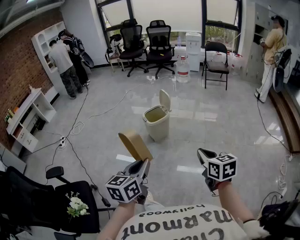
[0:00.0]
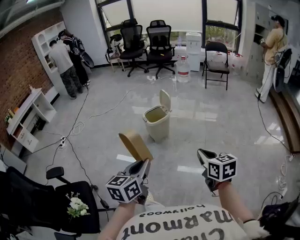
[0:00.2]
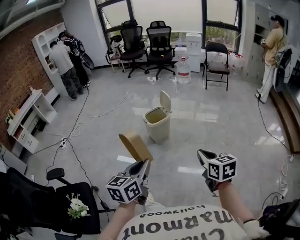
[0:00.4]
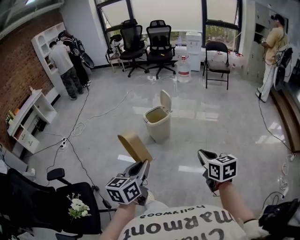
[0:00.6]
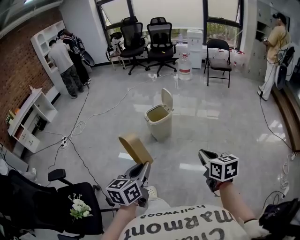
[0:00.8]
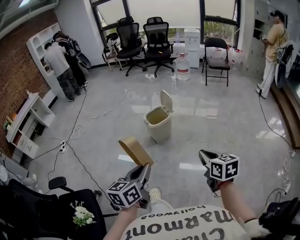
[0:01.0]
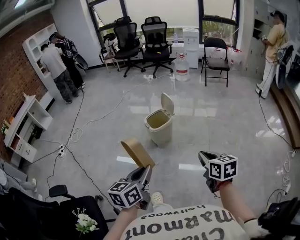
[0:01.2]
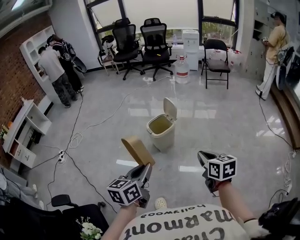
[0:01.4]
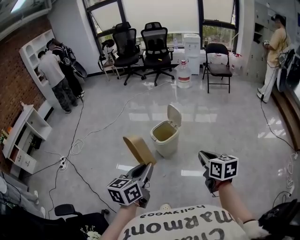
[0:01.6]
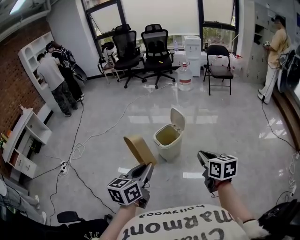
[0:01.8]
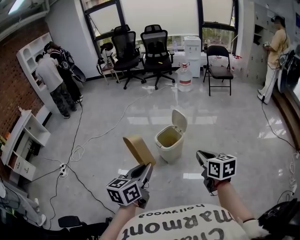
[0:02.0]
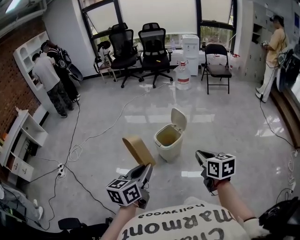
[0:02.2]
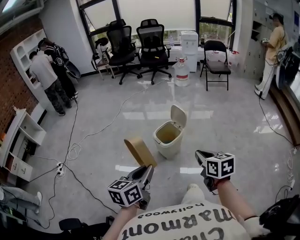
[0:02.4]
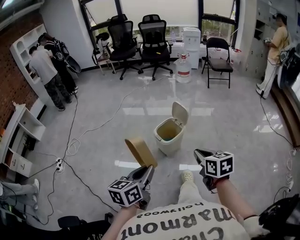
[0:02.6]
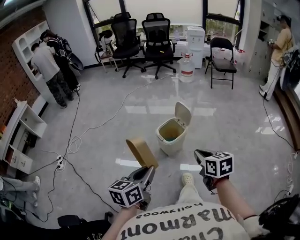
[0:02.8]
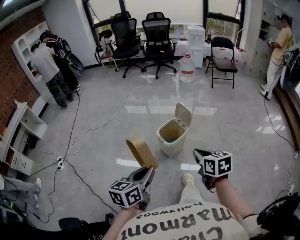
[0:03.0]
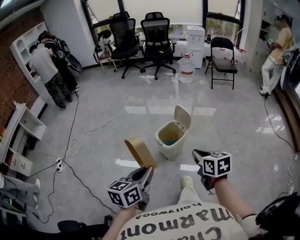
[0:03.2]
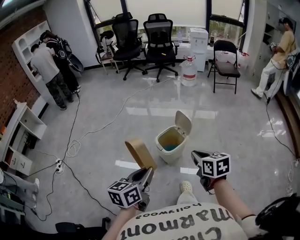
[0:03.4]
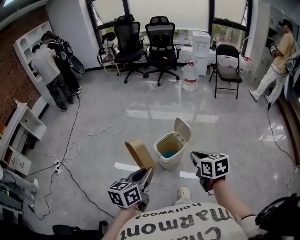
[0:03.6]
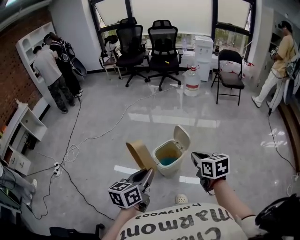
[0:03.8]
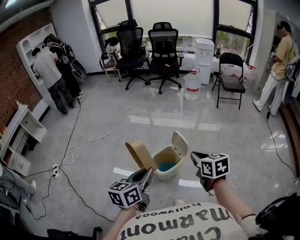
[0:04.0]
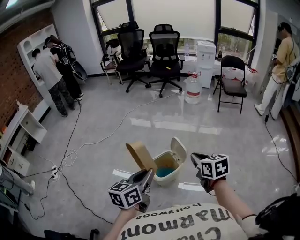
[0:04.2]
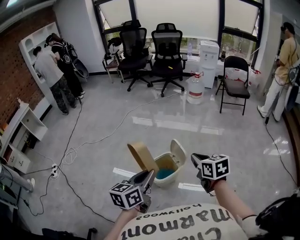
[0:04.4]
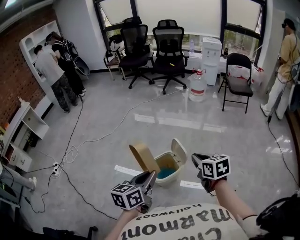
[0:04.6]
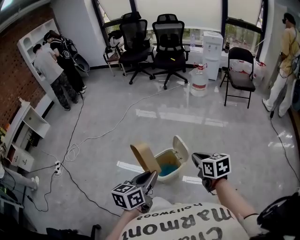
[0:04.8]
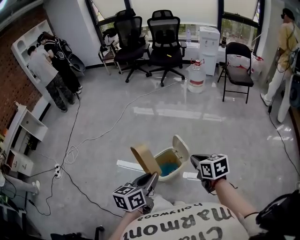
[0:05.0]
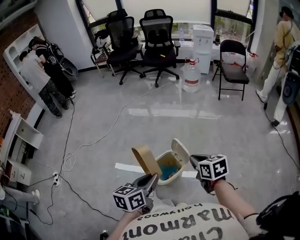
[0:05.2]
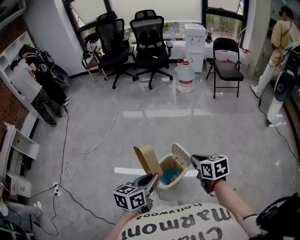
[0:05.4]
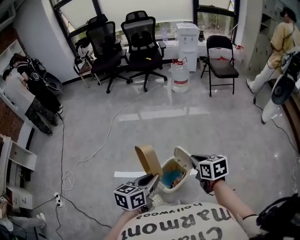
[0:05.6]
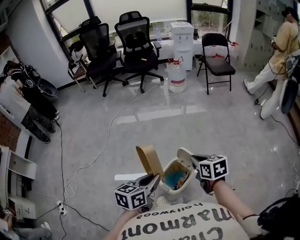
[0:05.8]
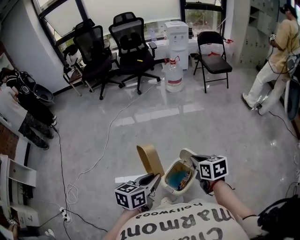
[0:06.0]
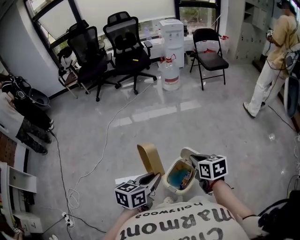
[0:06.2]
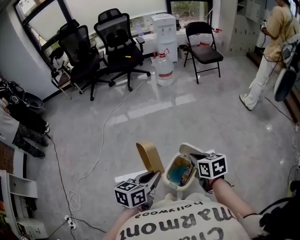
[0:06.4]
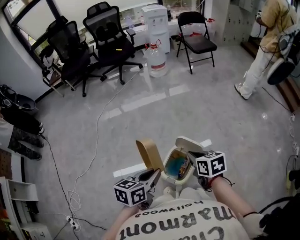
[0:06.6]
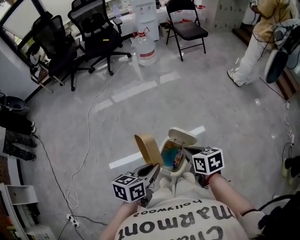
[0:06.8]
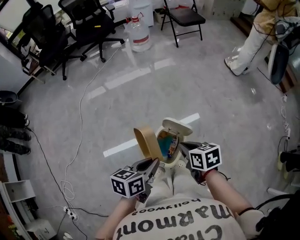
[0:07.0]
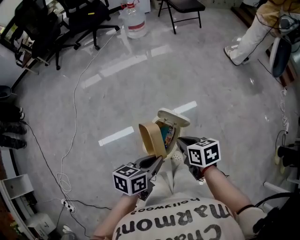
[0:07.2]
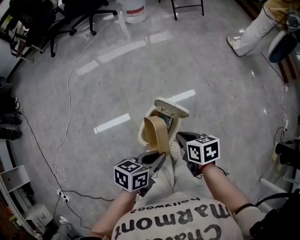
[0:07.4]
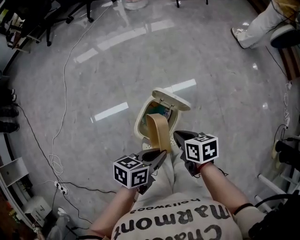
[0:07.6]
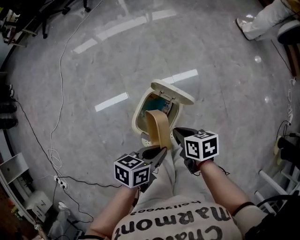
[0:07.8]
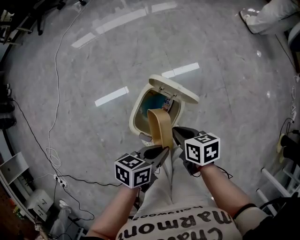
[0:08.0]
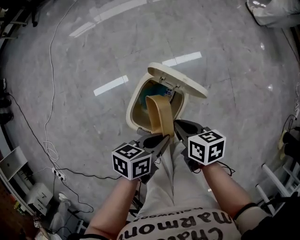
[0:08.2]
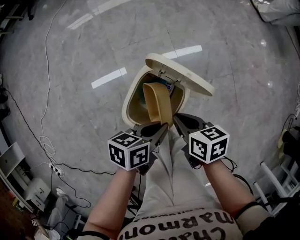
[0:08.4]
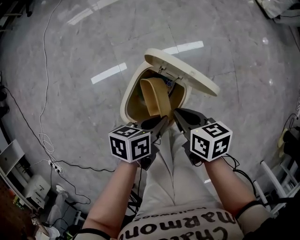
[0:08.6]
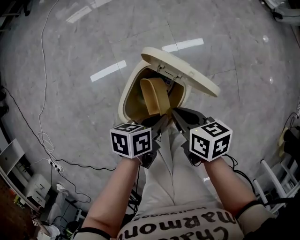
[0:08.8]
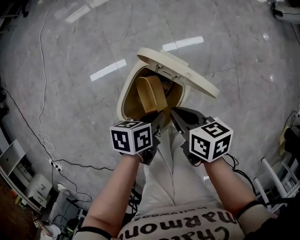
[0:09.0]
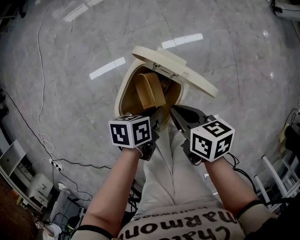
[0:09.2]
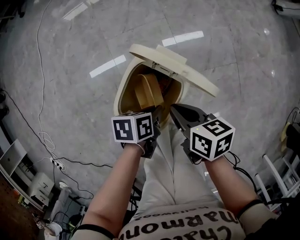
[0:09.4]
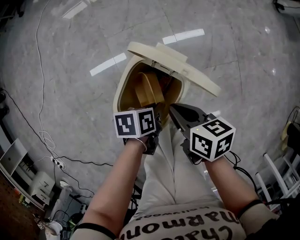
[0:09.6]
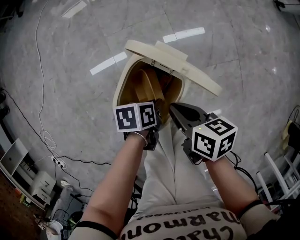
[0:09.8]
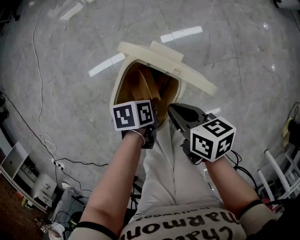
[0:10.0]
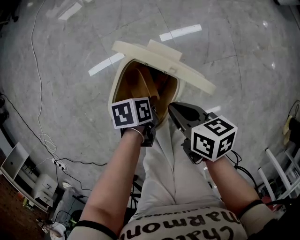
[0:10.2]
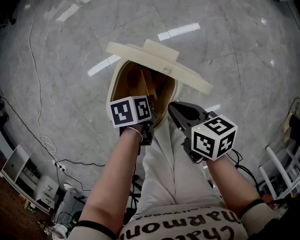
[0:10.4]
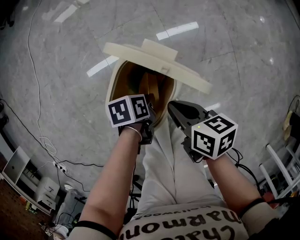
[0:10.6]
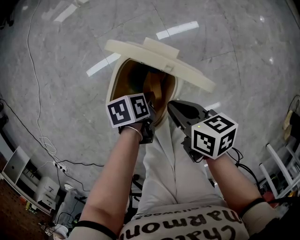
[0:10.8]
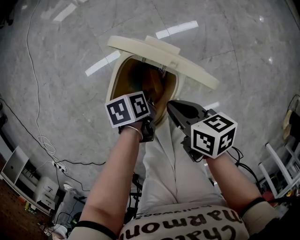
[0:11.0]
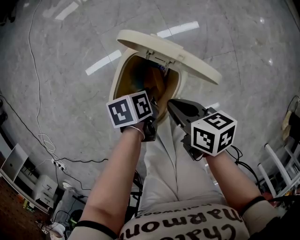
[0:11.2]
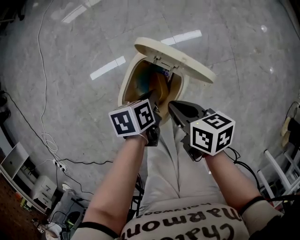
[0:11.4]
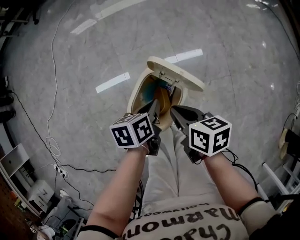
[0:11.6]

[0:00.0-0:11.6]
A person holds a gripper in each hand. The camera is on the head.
0.0 to 1.4 s: The two grippers go some 15 cm forward and to the left.
1.4 to 2.8 s: Both grippers travel together to the left and forward, some 15 cm.
2.8 to 4.4 s: Both grippers move forward, about 25 cm.
4.4 to 5.8 s: The grippers both shift forward and to the left by roughly 15 cm. The left gripper swivels about 30 degrees.
5.8 to 7.2 s: The right gripper shifts about 10 cm downward, and changes its angle by some 20 degrees. The left gripper heads downward and to the right, covering roughly 15 cm, and turns by approximately 30 degrees.
7.2 to 8.8 s: The two grippers go approximately 25 cm downward. The left gripper changes its angle by roughly 20 degrees.
8.8 to 10.2 s: The left gripper is displaced downward by about 10 cm, and swivels some 20 degrees.
10.2 to 11.6 s: The left gripper moves upward, some 15 cm, turns by about 20 degrees, and opens and closes again. Meanwhile the right gripper travels upward by about 10 cm.

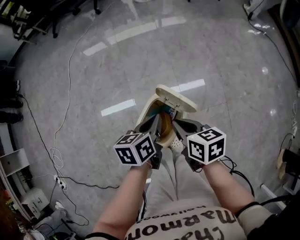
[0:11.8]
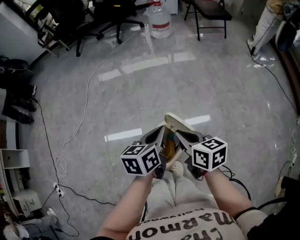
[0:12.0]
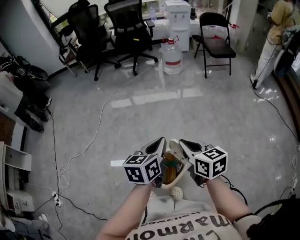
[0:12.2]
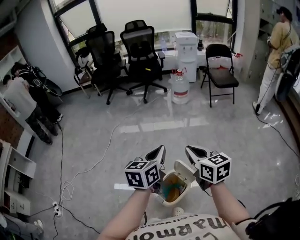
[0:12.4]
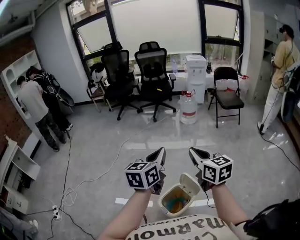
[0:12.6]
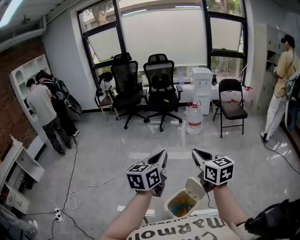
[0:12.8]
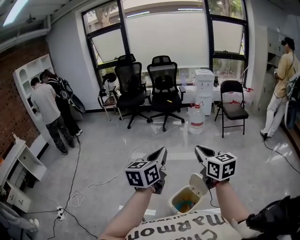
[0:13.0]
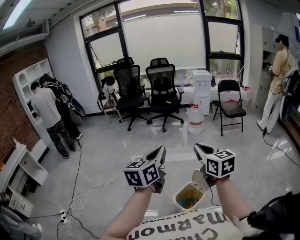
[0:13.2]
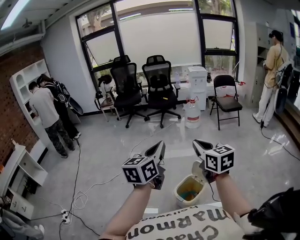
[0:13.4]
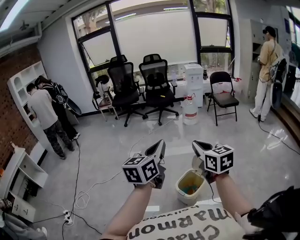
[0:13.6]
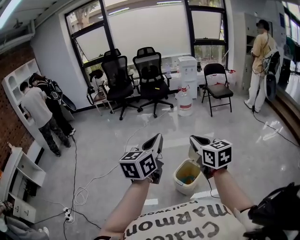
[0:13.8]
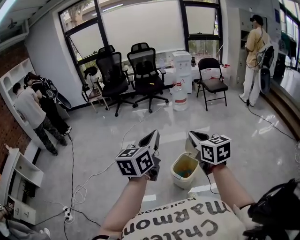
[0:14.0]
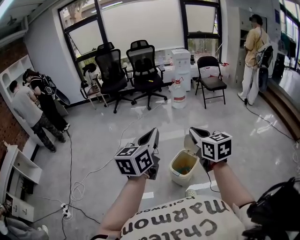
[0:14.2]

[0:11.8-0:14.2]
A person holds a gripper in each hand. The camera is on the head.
11.8 to 13.0 s: The grippers both shift upward by roughly 40 cm. The left gripper points its fingers approximately 30 degrees further upward. The right gripper tips its fingers upward by about 30 degrees.
13.0 to 14.2 s: The two grippers go roughly 20 cm backward.

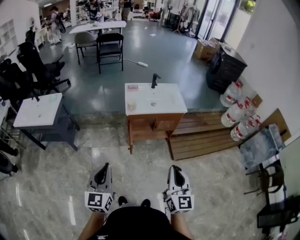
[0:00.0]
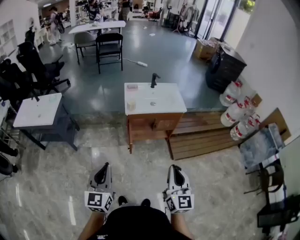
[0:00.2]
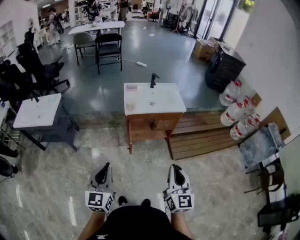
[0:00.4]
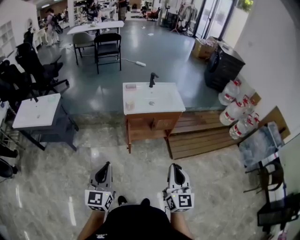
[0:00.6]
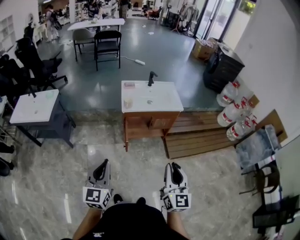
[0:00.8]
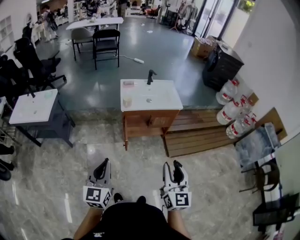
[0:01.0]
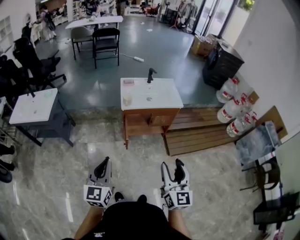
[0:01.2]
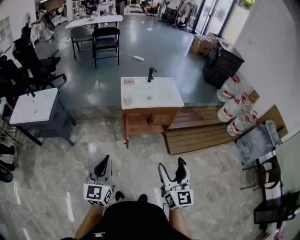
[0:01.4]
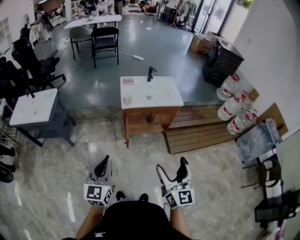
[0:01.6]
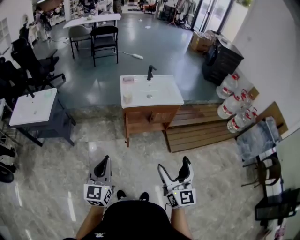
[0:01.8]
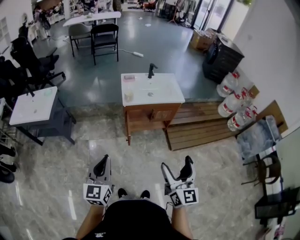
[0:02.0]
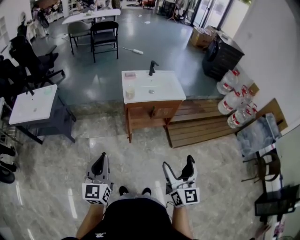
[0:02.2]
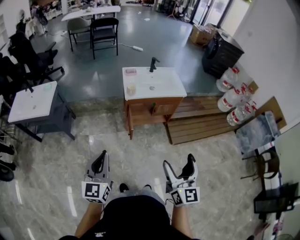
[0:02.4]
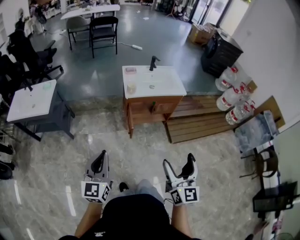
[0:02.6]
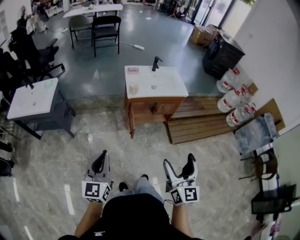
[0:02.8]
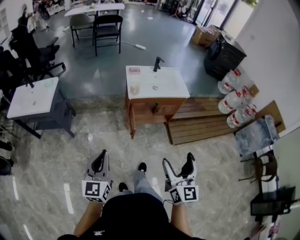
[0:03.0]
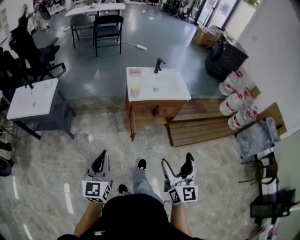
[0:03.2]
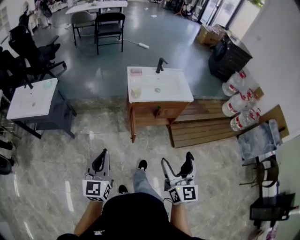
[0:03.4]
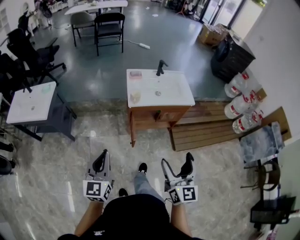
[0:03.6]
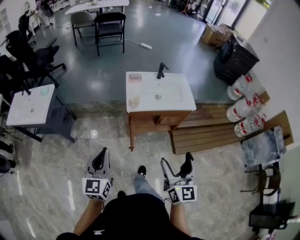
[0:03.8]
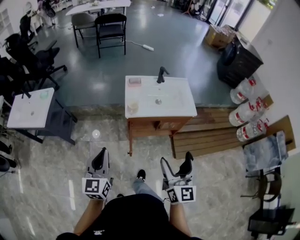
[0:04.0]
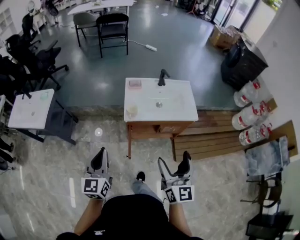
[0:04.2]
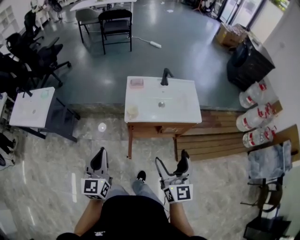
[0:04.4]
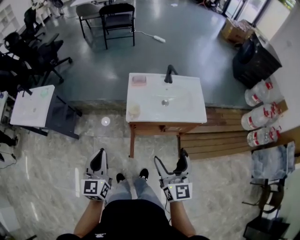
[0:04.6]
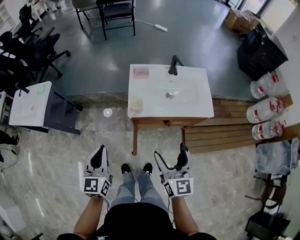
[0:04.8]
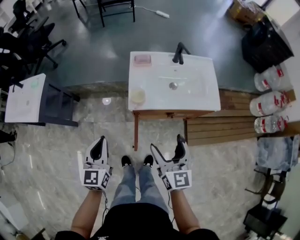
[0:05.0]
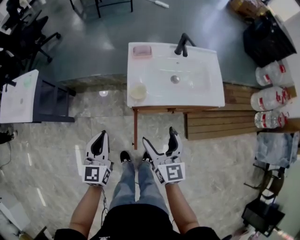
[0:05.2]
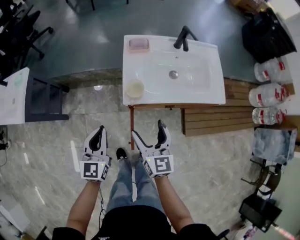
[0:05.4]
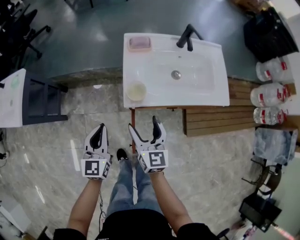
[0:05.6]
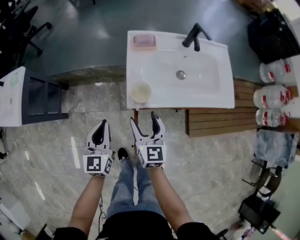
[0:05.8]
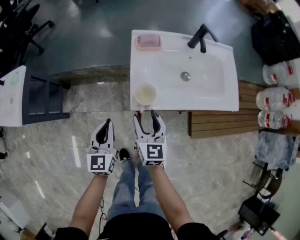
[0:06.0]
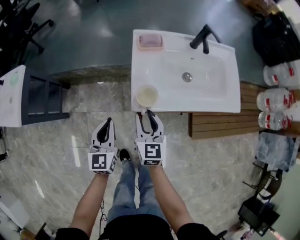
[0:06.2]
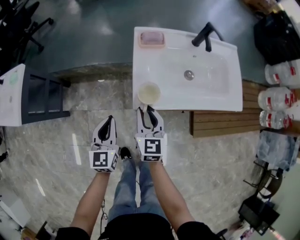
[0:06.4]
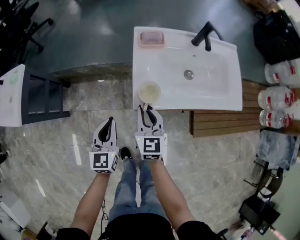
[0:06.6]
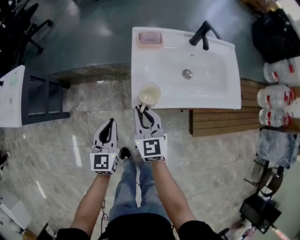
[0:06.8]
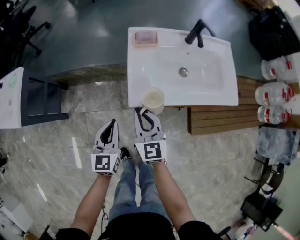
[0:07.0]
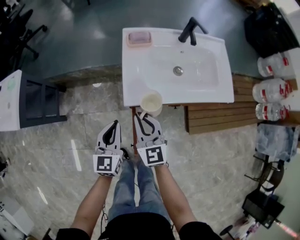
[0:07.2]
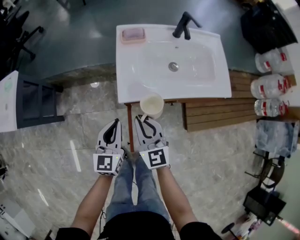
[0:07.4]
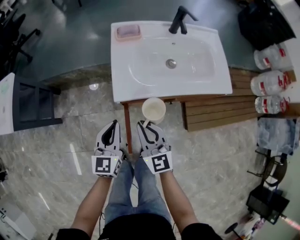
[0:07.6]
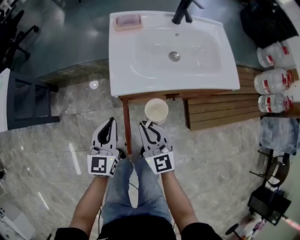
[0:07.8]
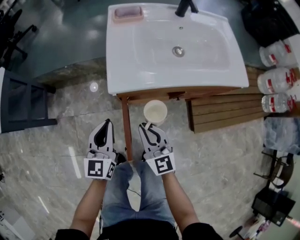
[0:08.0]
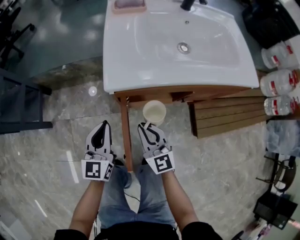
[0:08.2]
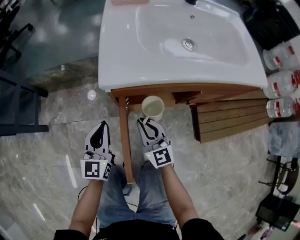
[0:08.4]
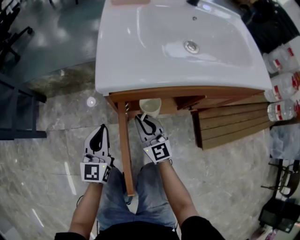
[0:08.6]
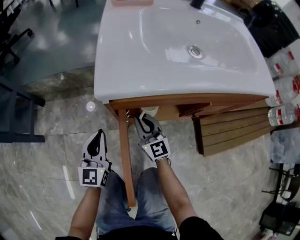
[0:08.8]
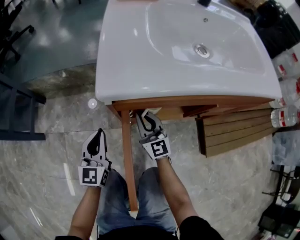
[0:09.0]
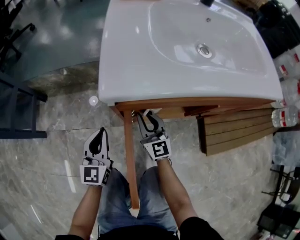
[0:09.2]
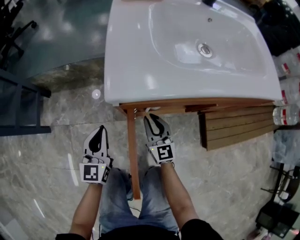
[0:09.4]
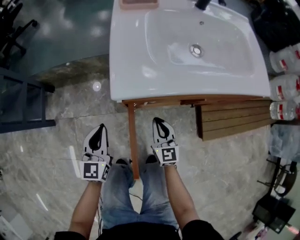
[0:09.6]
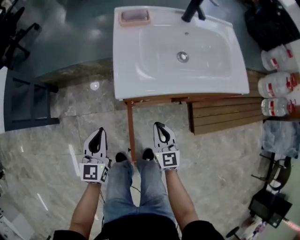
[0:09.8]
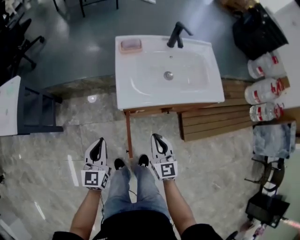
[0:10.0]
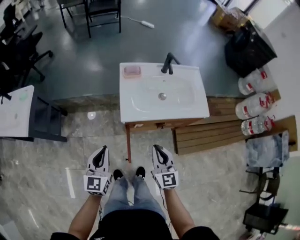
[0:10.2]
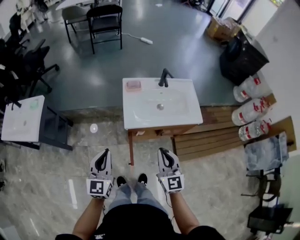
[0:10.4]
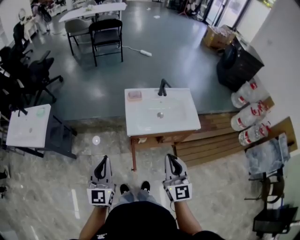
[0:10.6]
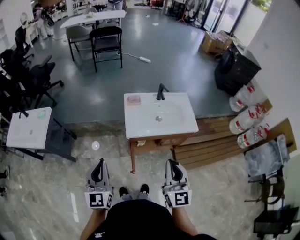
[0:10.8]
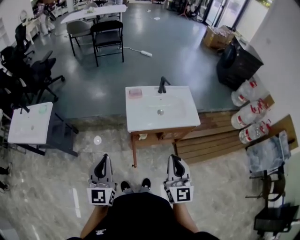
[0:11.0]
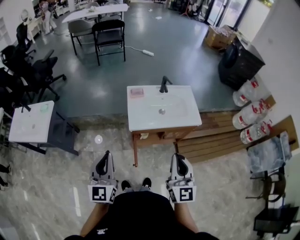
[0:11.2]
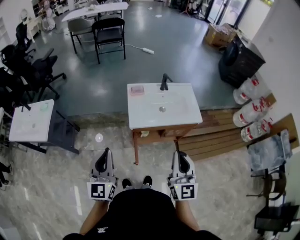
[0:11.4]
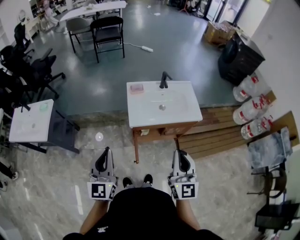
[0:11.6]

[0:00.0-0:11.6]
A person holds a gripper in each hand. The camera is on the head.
0.0 to 1.4 s: The right gripper opens up.
1.4 to 2.8 s: The left gripper travels to the left by approximately 10 cm.
2.8 to 4.4 s: Both grippers travel together forward, approximately 30 cm.
4.4 to 5.8 s: The right gripper is displaced downward, forward and to the left by about 40 cm. Meanwhile the left gripper moves downward and forward, about 30 cm.
5.8 to 7.2 s: The right gripper turns by roughly 20 degrees, and closes up. Meanwhile the left gripper travels to the right by approximately 5 cm.
7.2 to 8.8 s: Both grippers travel together downward, approximately 35 cm.
8.8 to 10.2 s: Both grippers travel together upward, about 40 cm.
10.2 to 11.6 s: The left gripper goes approximately 20 cm upward. The right gripper travels upward and backward by about 25 cm.
